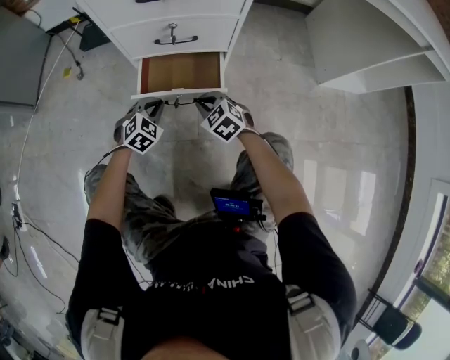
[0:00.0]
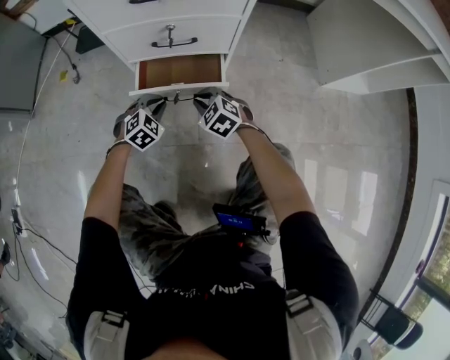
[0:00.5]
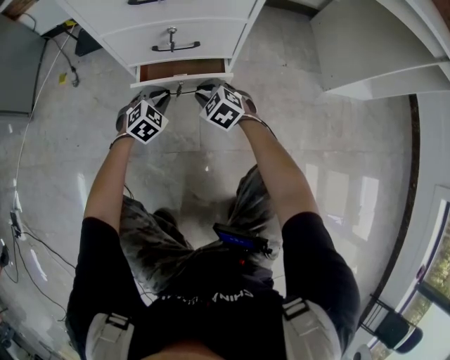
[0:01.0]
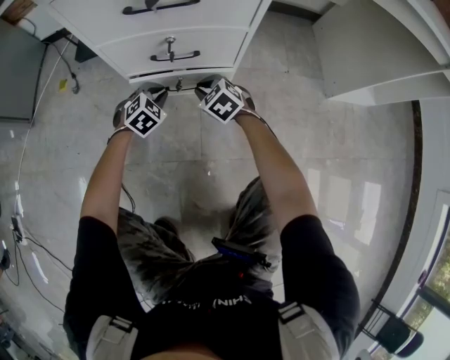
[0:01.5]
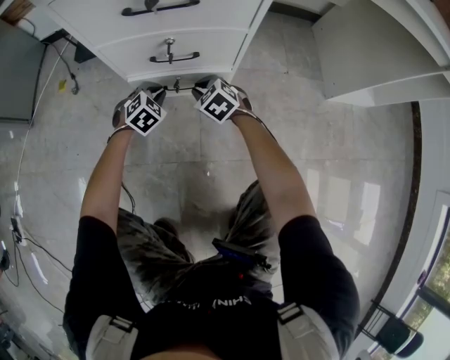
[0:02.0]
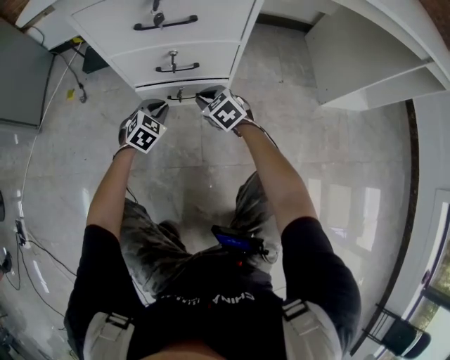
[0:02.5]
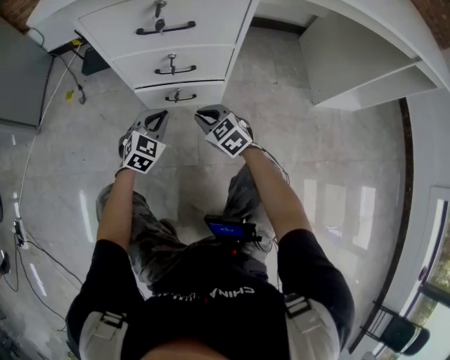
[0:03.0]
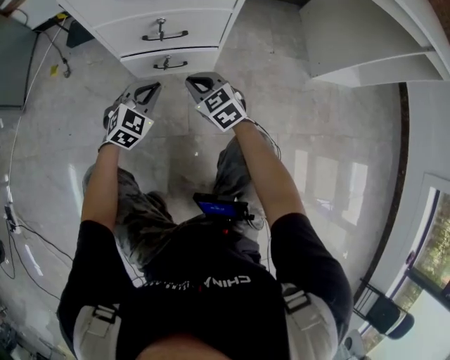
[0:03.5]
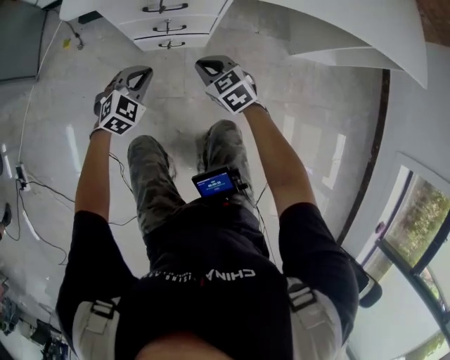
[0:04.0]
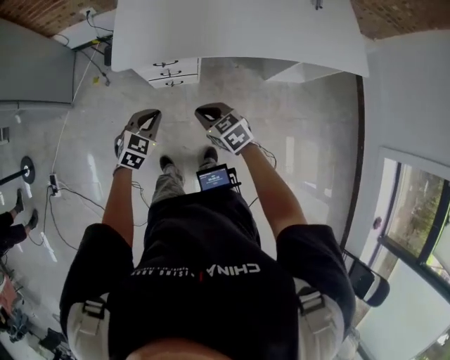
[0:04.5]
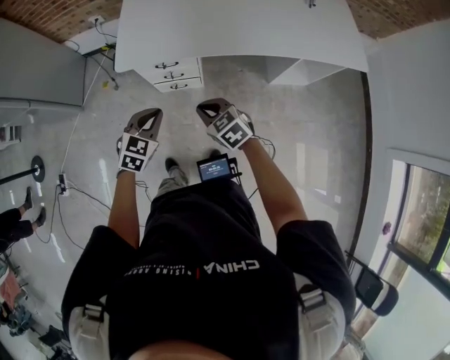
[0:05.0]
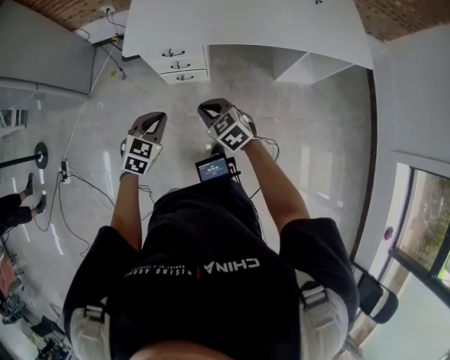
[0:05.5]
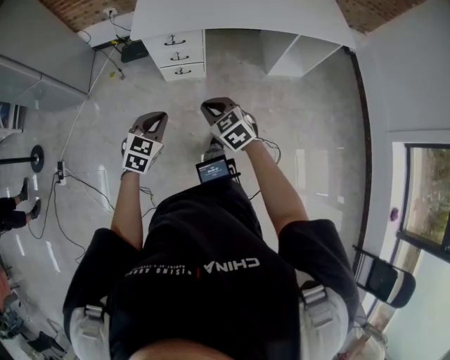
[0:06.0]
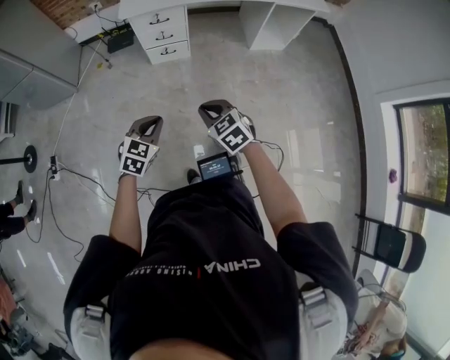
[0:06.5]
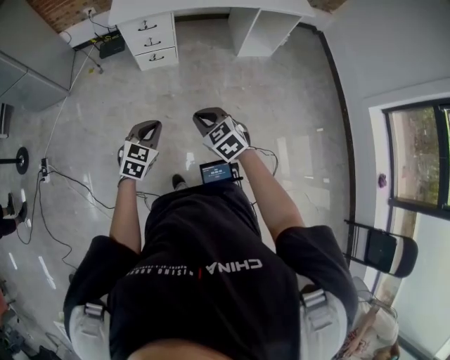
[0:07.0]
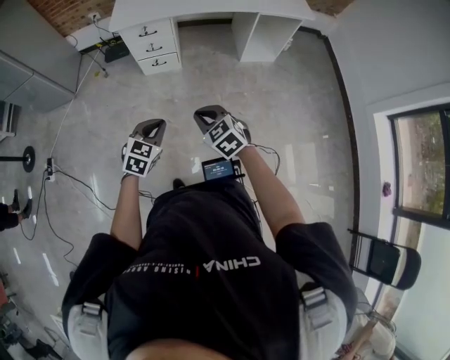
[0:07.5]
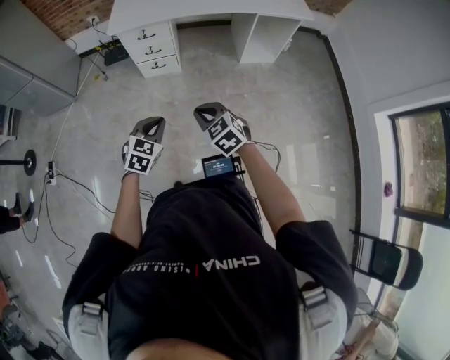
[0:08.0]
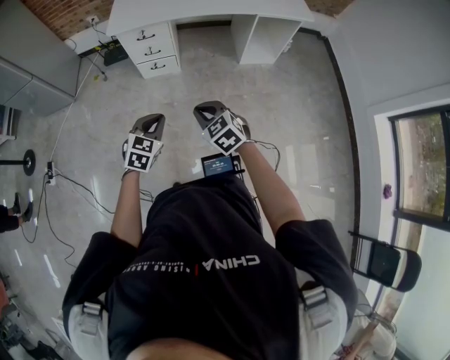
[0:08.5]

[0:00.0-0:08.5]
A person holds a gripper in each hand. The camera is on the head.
0:00.0 to 0:02.0: Both grippers move forward, roughly 15 cm.
0:02.0 to 0:04.0: Both grippers move upward and backward, about 35 cm.
0:04.0 to 0:06.5: The two grippers travel together, backward, approximately 60 cm. Both grippers travel together upward, some 40 cm.
0:06.5 to 0:08.5: Both grippers travel together to the right, some 15 cm.

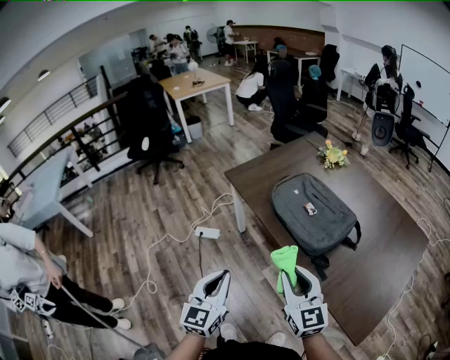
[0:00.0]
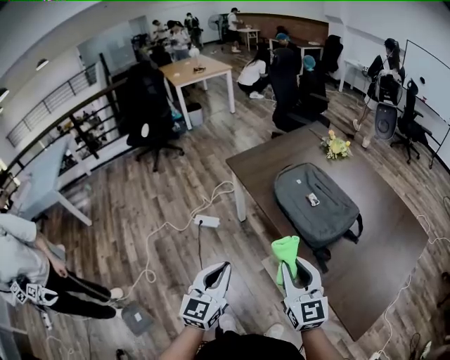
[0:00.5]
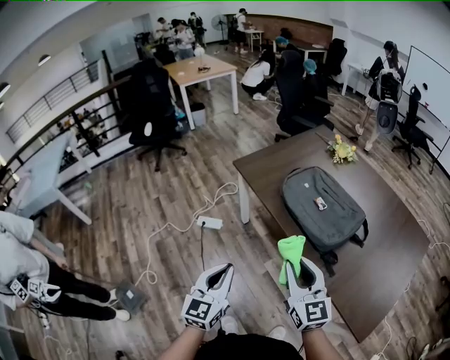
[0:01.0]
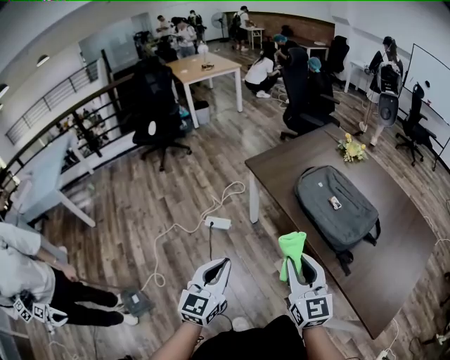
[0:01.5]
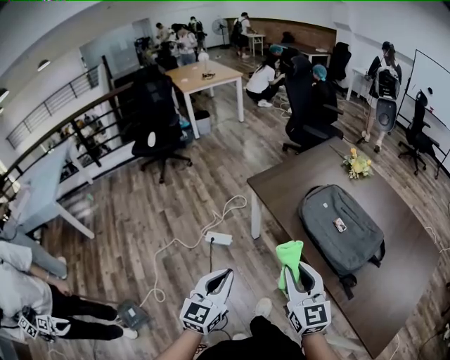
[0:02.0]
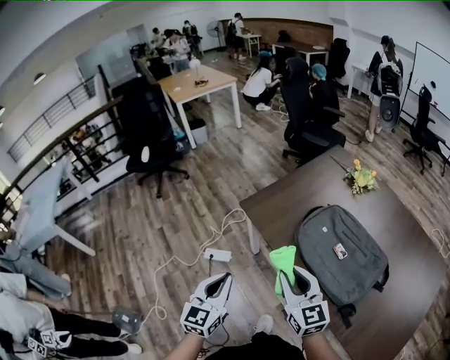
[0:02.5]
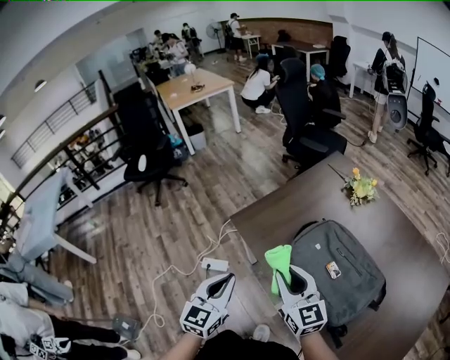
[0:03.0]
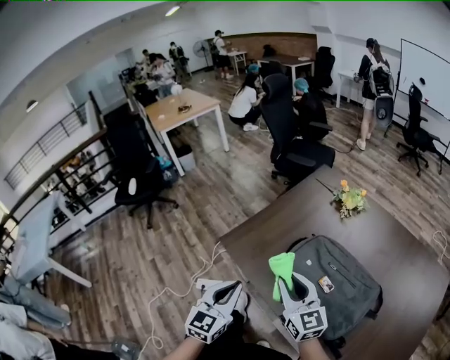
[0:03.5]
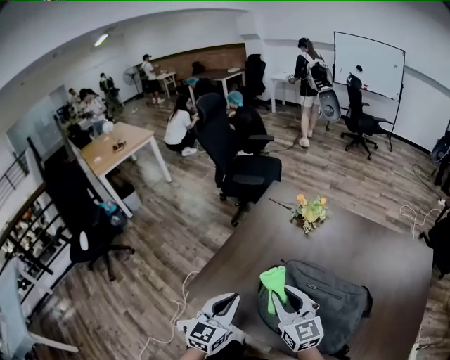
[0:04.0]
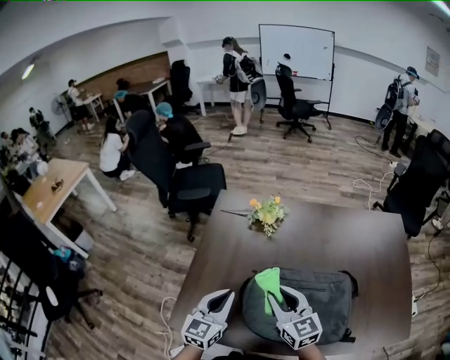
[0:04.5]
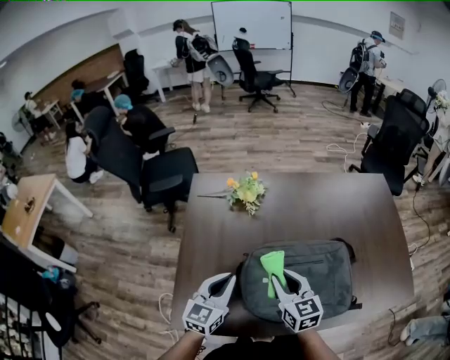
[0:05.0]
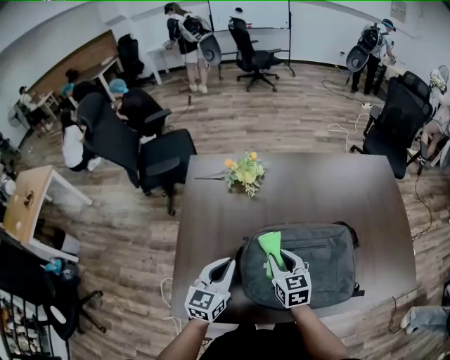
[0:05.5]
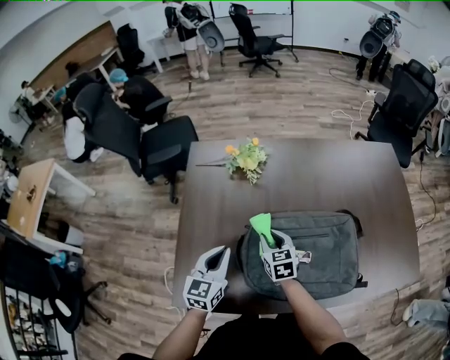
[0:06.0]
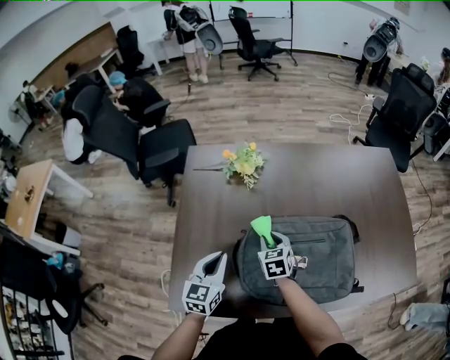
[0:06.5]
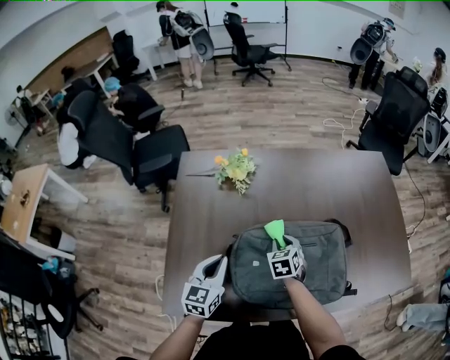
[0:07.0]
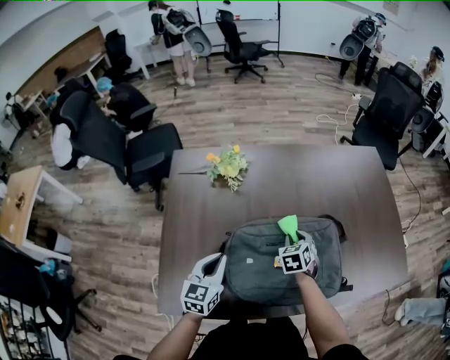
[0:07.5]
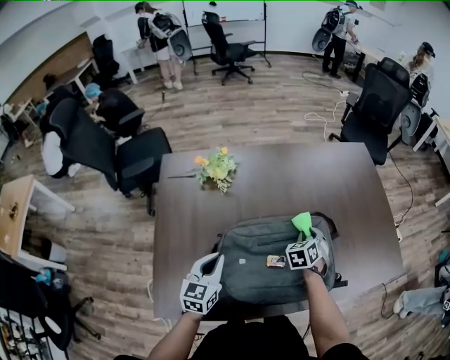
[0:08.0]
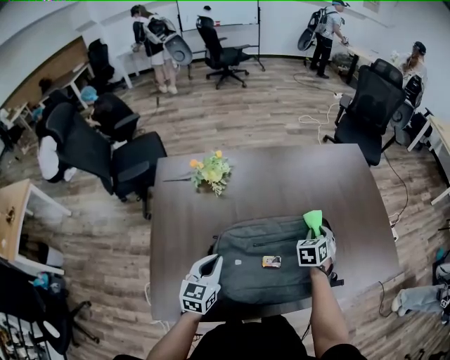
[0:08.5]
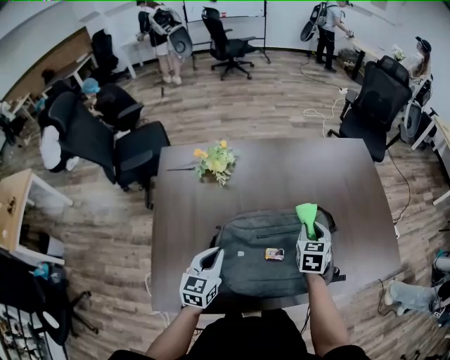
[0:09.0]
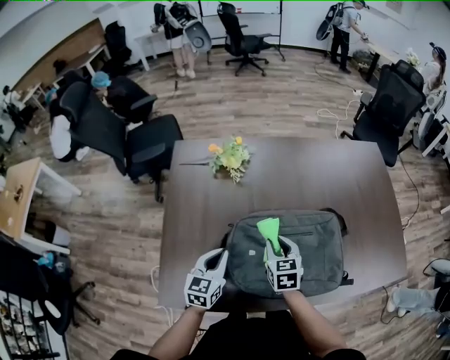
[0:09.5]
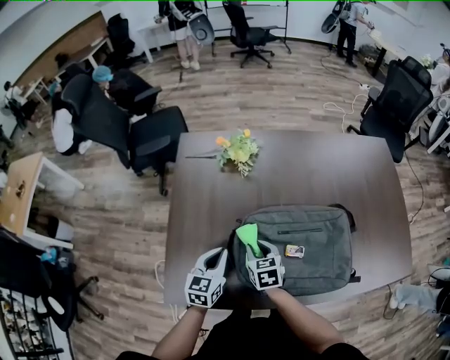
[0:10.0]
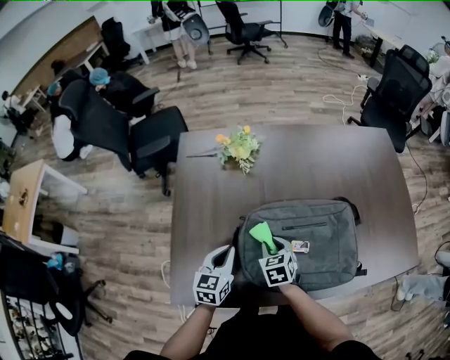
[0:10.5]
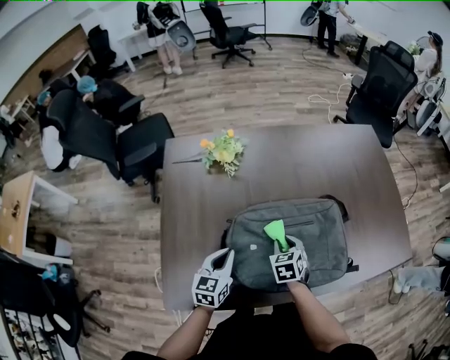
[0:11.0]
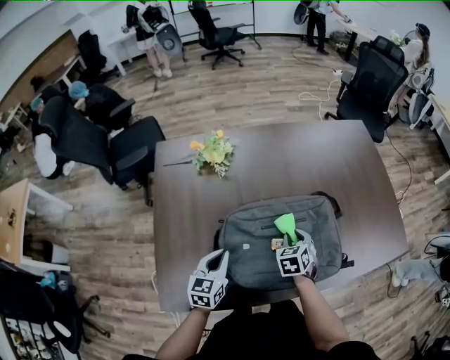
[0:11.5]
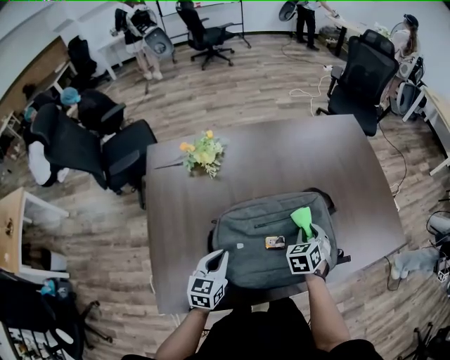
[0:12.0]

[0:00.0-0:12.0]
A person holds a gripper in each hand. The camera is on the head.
0:00.0 to 0:02.0: Both grippers move to the left and forward, roughly 15 cm.
0:02.0 to 0:04.0: The right gripper is displaced forward by about 35 cm. The left gripper heads forward and to the right, covering roughly 40 cm, and turns by approximately 30 degrees.
0:04.0 to 0:06.0: The left gripper shifts by about 15 cm, and changes its angle by approximately 30 degrees; the right gripper is displaced downward by approximately 20 cm, and swivels roughly 50 degrees.
0:06.0 to 0:08.0: The right gripper shifts by about 25 cm, and rotates about 40 degrees; the left gripper ends up some 5 cm from where it was.
0:08.0 to 0:10.0: The right gripper goes upward and returns, some 5 cm each way, and changes its angle by some 40 degrees; the left gripper shifts by some 5 cm.
0:10.0 to 0:12.0: The left gripper changes place by about 5 cm. The right gripper moves approximately 25 cm, and rotates about 40 degrees.

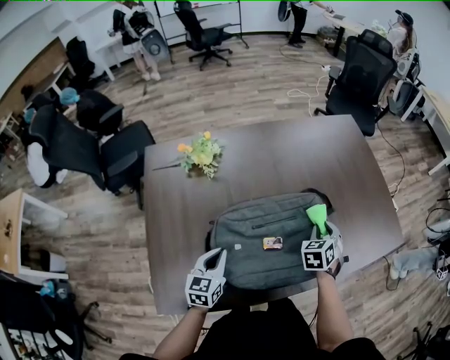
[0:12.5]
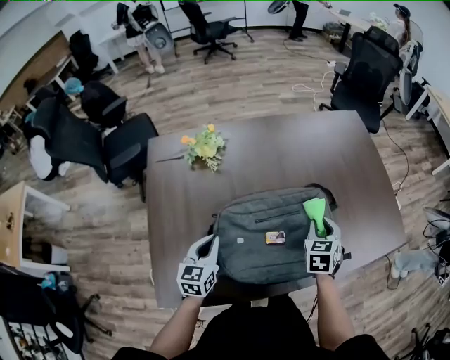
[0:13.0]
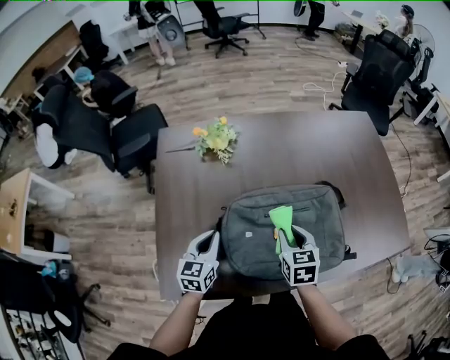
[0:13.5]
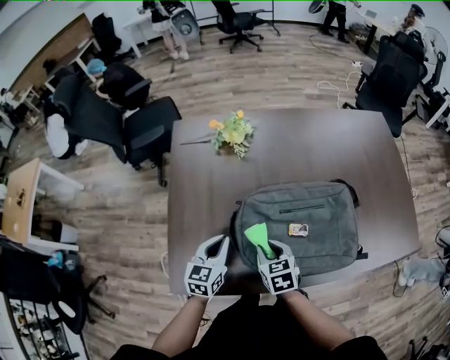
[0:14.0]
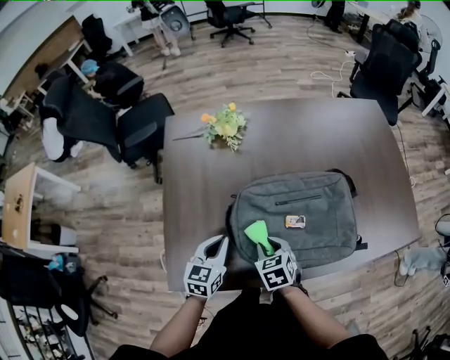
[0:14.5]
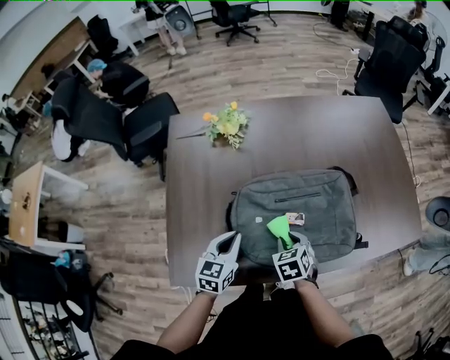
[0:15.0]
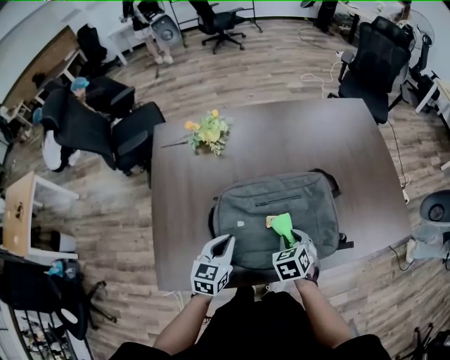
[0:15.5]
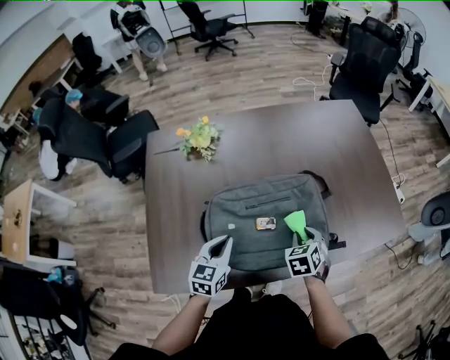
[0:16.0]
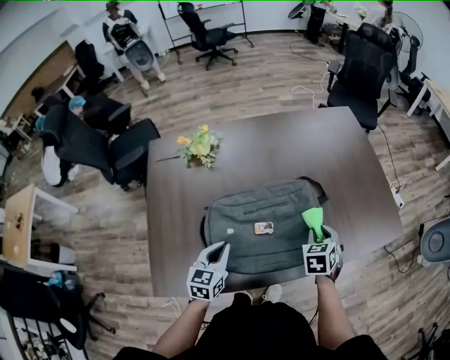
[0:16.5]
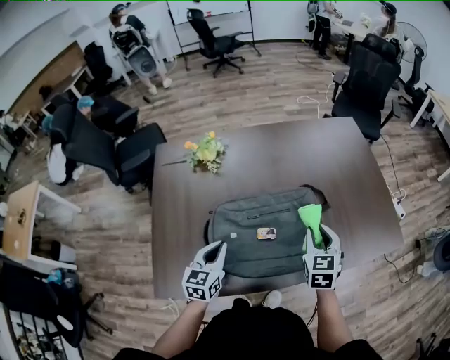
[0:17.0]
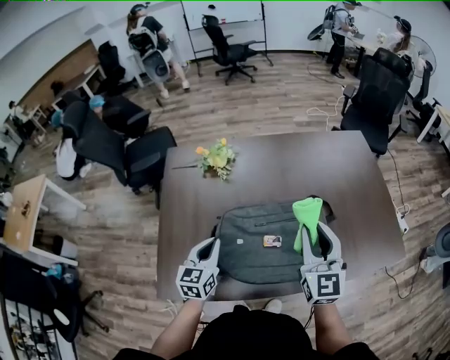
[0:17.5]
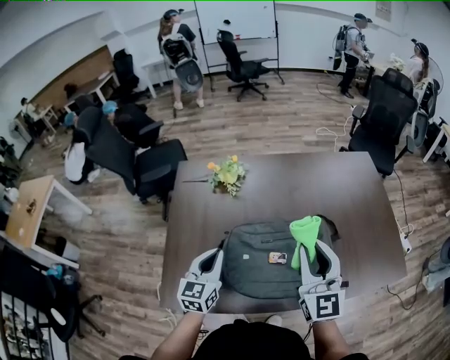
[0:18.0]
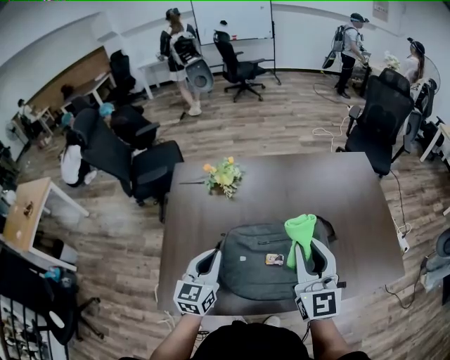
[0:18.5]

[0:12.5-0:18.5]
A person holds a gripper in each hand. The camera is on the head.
0:12.5 to 0:14.5: The left gripper moves approximately 5 cm. The right gripper changes place by approximately 30 cm, and turns by about 40 degrees.
0:14.5 to 0:16.5: The right gripper is displaced to the right by about 25 cm, and swivels some 30 degrees; the left gripper moves to the right, about 10 cm.
0:16.5 to 0:18.5: The left gripper travels upward and to the left by roughly 15 cm; the right gripper travels upward and to the left by approximately 30 cm, and angles its fingers upward, by about 50 degrees.
